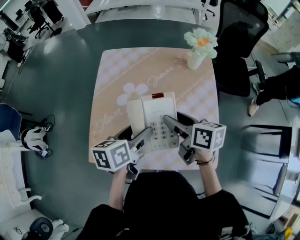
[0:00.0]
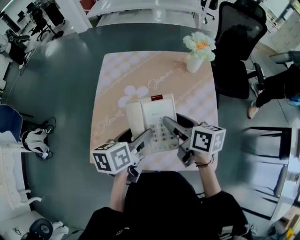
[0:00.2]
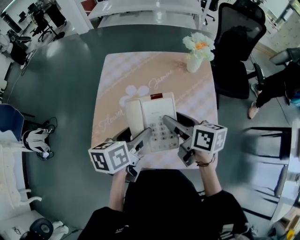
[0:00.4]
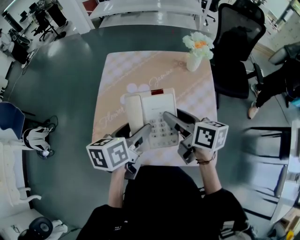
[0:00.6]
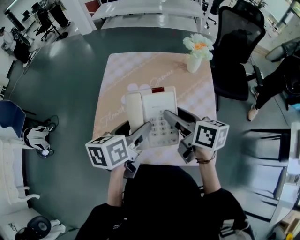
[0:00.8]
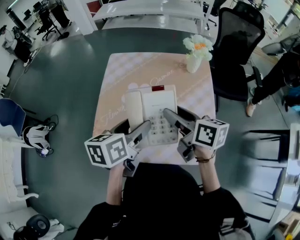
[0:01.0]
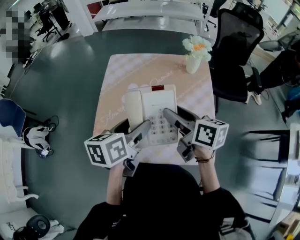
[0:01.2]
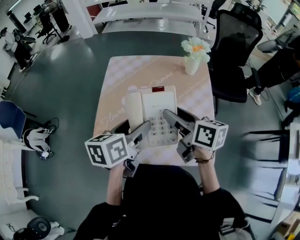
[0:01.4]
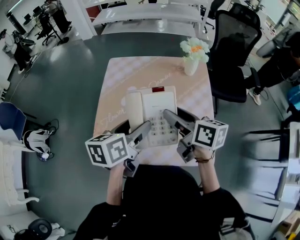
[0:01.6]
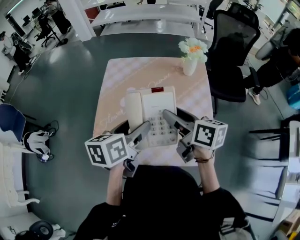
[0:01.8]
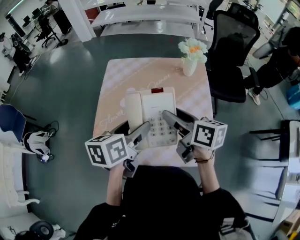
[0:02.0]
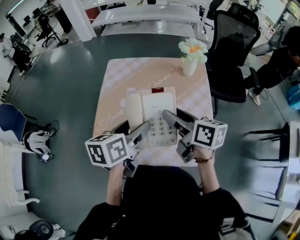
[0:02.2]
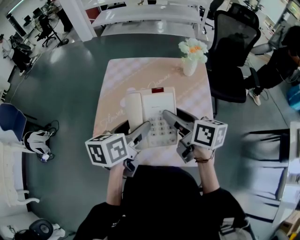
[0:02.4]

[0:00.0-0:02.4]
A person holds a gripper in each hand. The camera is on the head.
0:00.0 to 0:01.2: Both grippers travel together upward, some 10 cm.
0:01.2 to 0:02.4: Both grippers stay put.

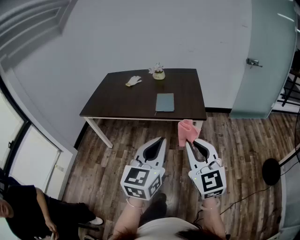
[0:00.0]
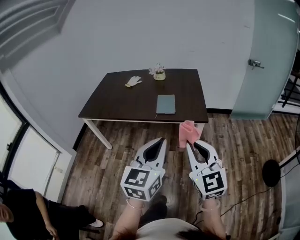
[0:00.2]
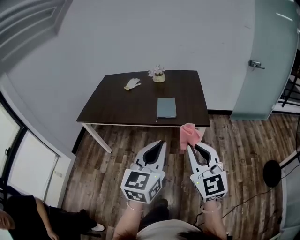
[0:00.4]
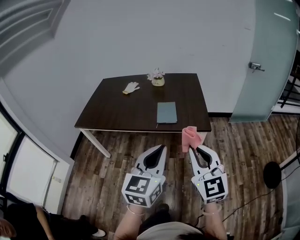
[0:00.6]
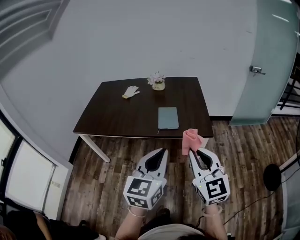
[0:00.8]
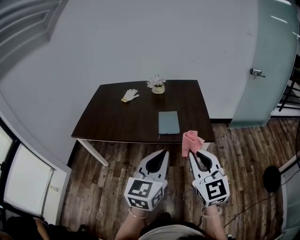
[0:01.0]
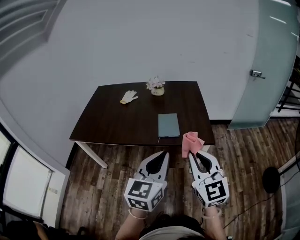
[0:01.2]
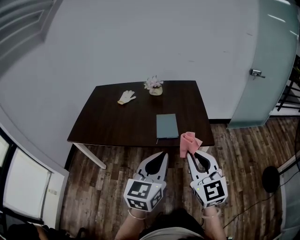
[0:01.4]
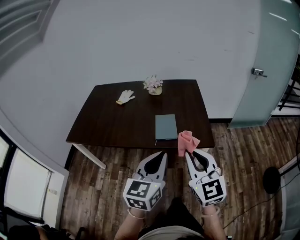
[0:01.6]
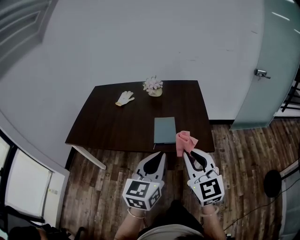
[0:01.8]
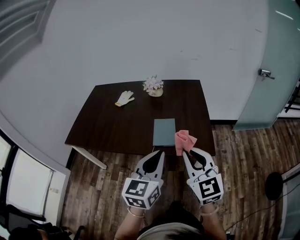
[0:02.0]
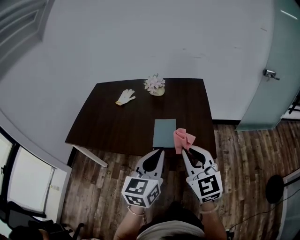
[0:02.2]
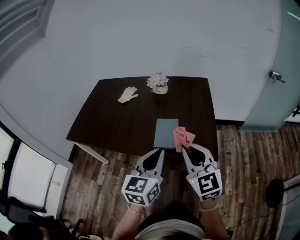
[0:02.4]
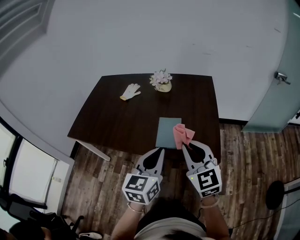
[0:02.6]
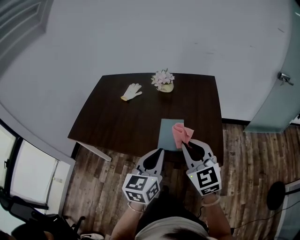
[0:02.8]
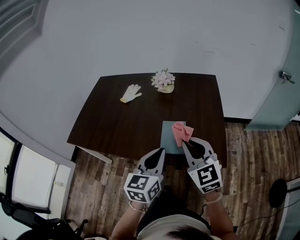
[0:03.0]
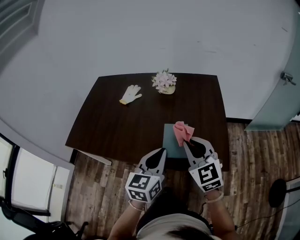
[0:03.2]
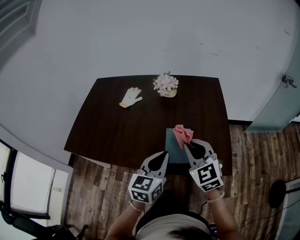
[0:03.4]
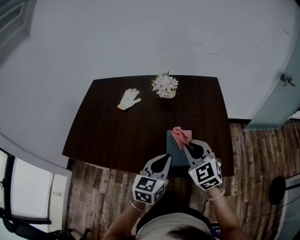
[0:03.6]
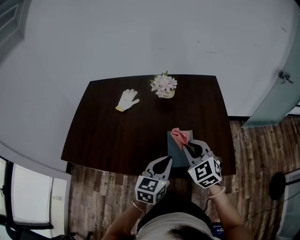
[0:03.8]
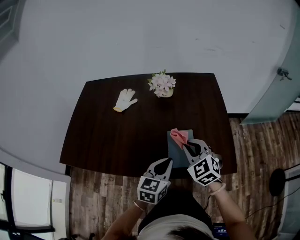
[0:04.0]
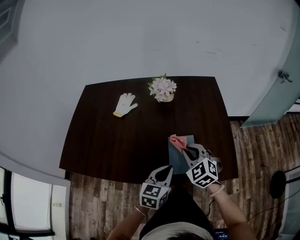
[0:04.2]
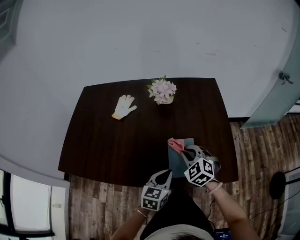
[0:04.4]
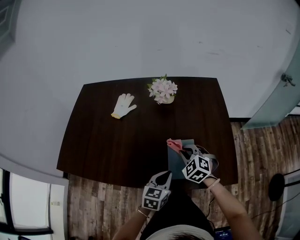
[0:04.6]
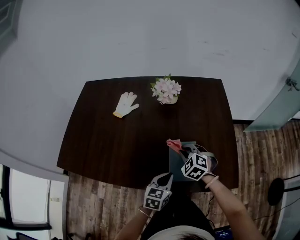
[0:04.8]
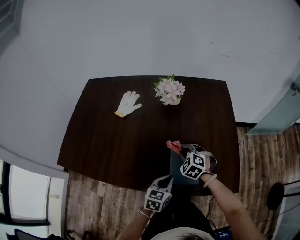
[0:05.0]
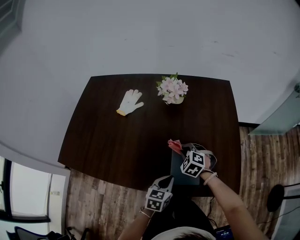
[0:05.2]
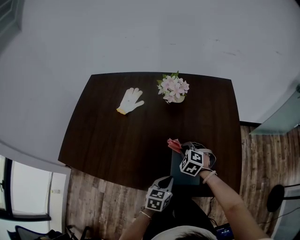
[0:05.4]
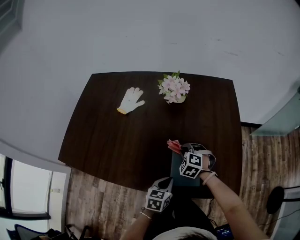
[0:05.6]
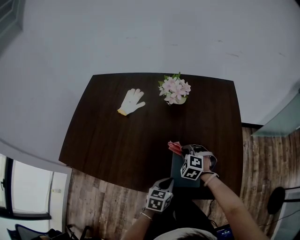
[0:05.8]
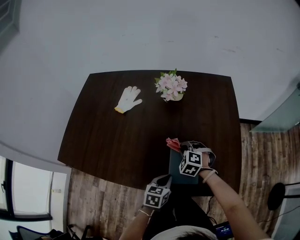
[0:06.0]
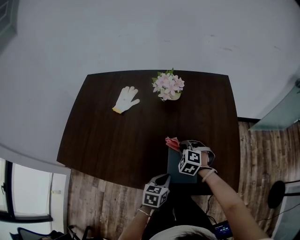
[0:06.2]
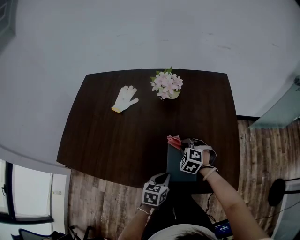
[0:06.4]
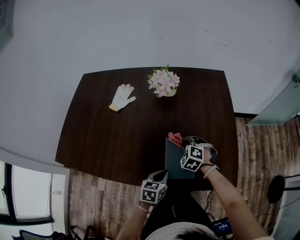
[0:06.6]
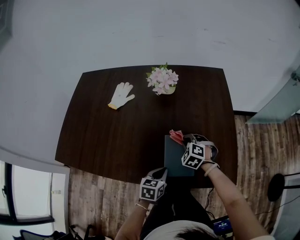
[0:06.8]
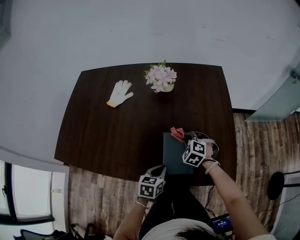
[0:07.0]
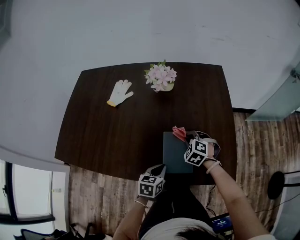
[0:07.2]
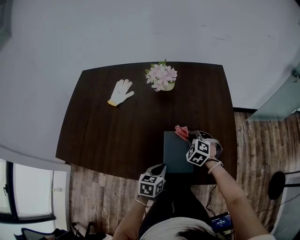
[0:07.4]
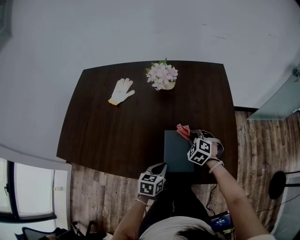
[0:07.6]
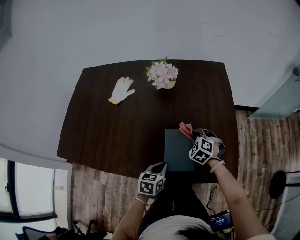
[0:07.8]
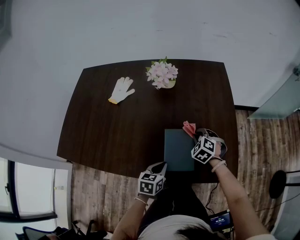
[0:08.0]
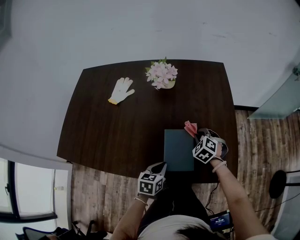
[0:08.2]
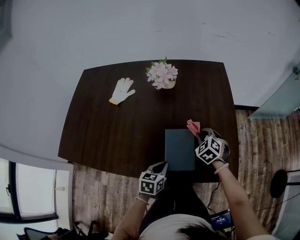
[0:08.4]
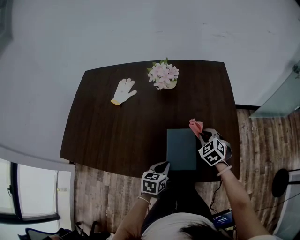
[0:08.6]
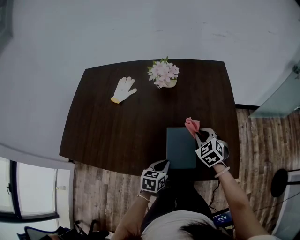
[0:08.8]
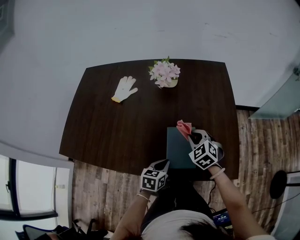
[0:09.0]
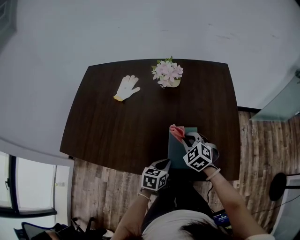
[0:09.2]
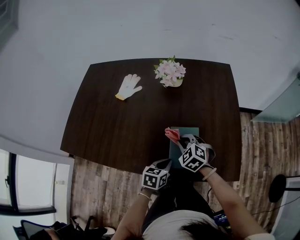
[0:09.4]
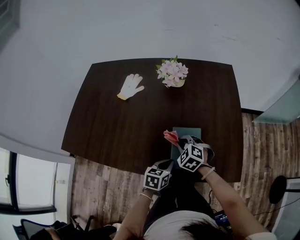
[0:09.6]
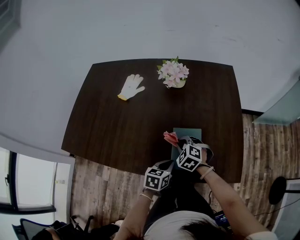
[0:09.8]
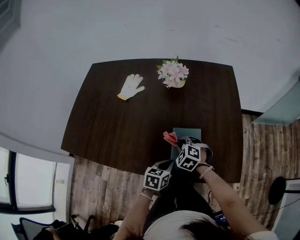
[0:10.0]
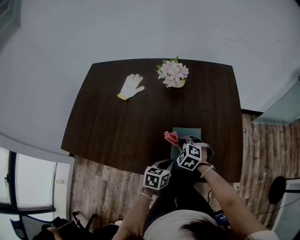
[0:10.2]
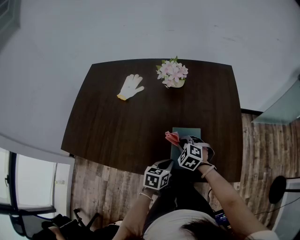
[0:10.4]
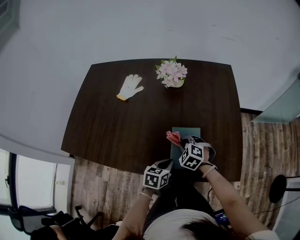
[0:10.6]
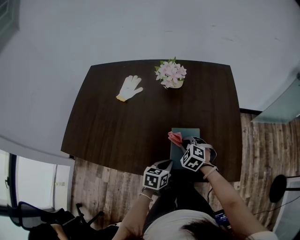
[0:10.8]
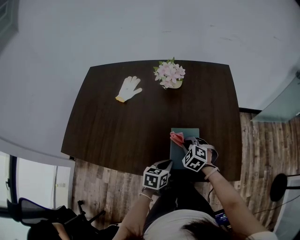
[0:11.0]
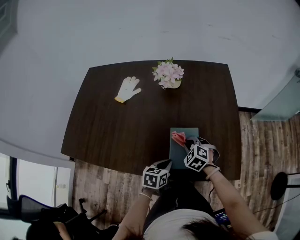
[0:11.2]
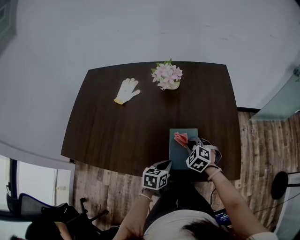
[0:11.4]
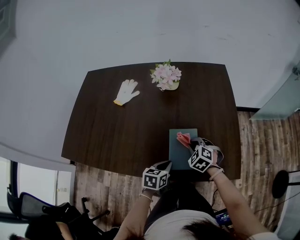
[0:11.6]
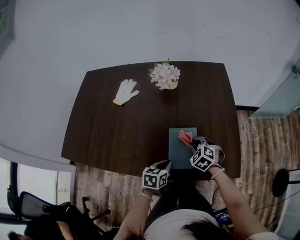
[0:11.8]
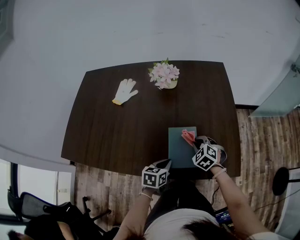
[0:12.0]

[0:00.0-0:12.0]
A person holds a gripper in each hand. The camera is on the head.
0:00.0 to 0:01.6: The grippers both shift forward by about 25 cm.
0:01.6 to 0:03.0: The grippers both shift forward by approximately 25 cm.
0:03.0 to 0:04.4: The right gripper travels forward, downward and to the left by approximately 25 cm, and changes its angle by about 30 degrees. Meanwhile the left gripper heads downward and forward, covering about 20 cm, and turns by some 20 degrees.
0:04.4 to 0:06.0: The left gripper moves downward, roughly 10 cm; the right gripper travels downward and forward by about 15 cm, and turns by about 20 degrees.
0:06.0 to 0:07.6: The right gripper travels to the right by roughly 10 cm.
0:07.6 to 0:09.0: The right gripper shifts about 5 cm upward.
0:09.0 to 0:10.4: The right gripper moves to the left and downward, approximately 10 cm, and swivels about 20 degrees.
0:10.4 to 0:12.0: The right gripper travels to the right by roughly 10 cm.

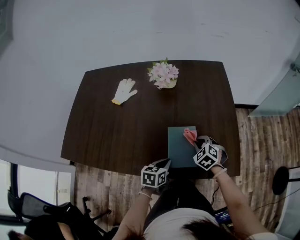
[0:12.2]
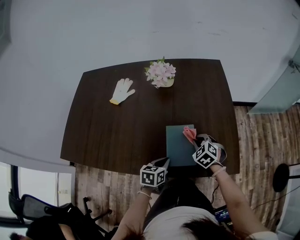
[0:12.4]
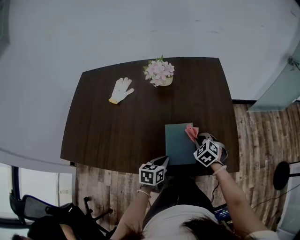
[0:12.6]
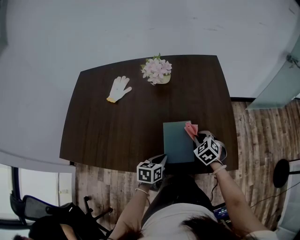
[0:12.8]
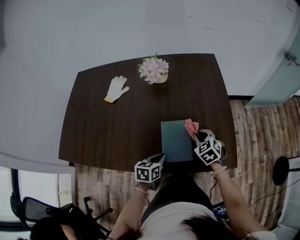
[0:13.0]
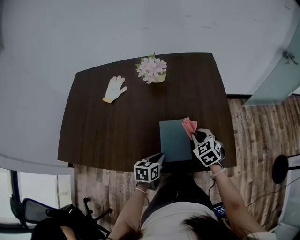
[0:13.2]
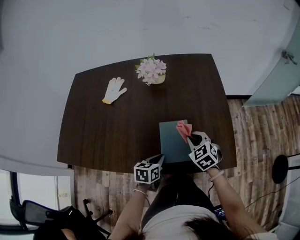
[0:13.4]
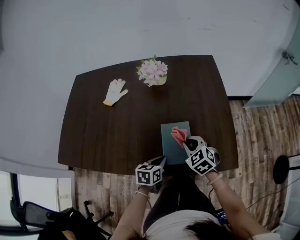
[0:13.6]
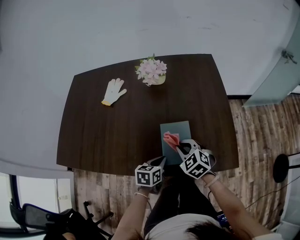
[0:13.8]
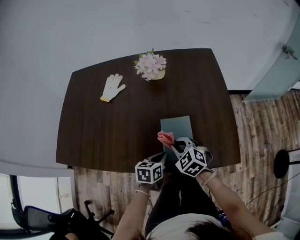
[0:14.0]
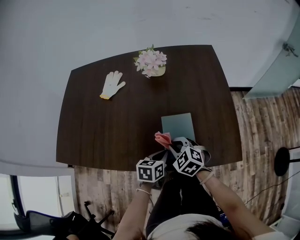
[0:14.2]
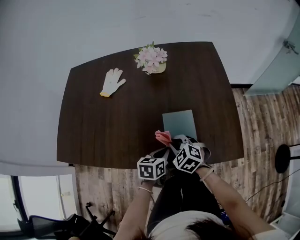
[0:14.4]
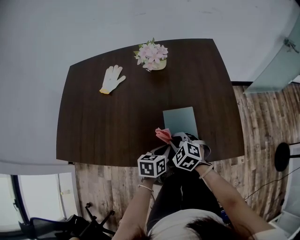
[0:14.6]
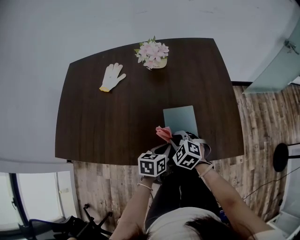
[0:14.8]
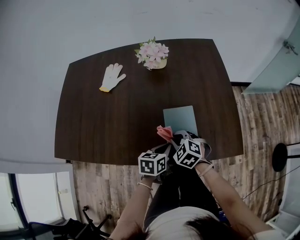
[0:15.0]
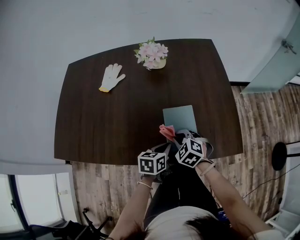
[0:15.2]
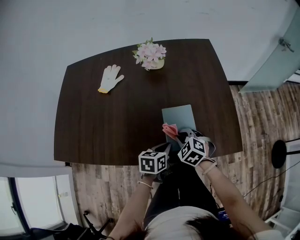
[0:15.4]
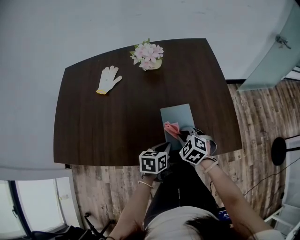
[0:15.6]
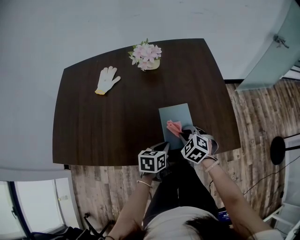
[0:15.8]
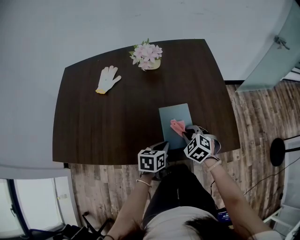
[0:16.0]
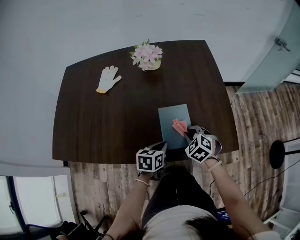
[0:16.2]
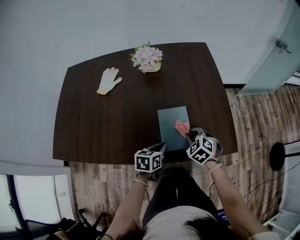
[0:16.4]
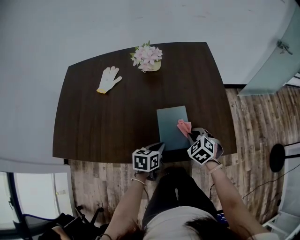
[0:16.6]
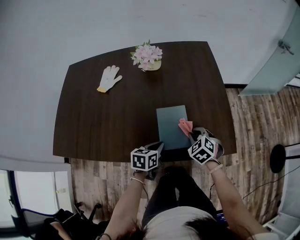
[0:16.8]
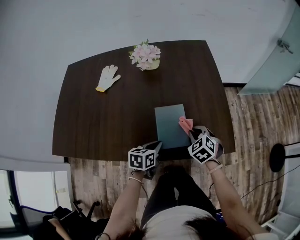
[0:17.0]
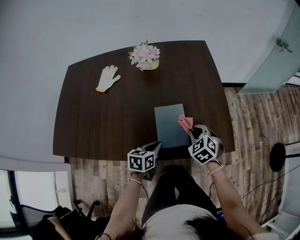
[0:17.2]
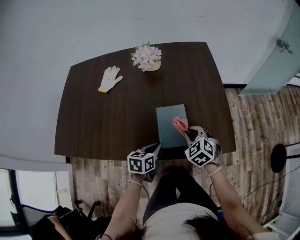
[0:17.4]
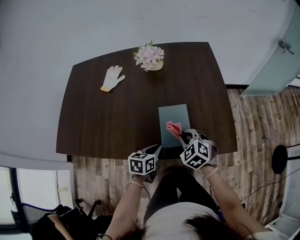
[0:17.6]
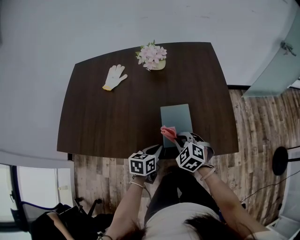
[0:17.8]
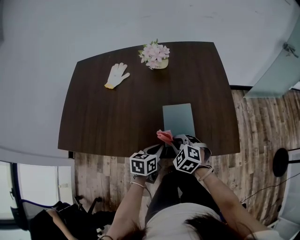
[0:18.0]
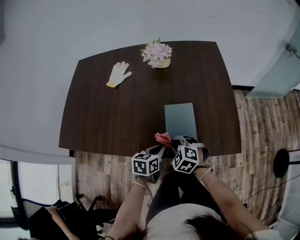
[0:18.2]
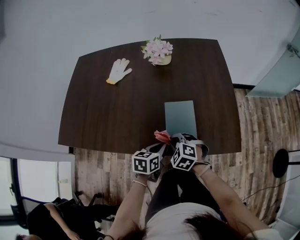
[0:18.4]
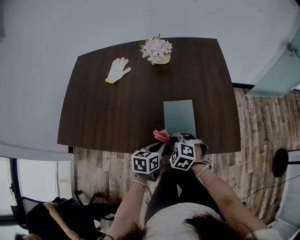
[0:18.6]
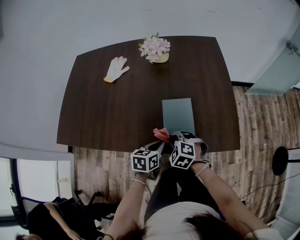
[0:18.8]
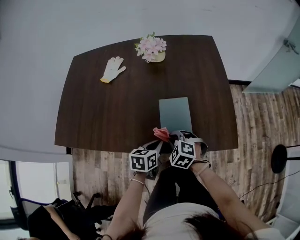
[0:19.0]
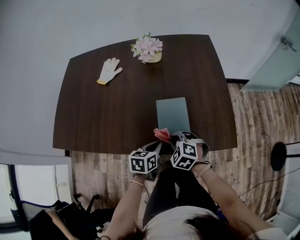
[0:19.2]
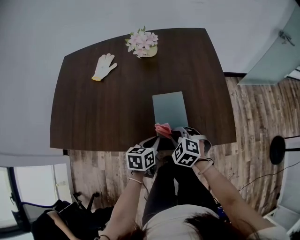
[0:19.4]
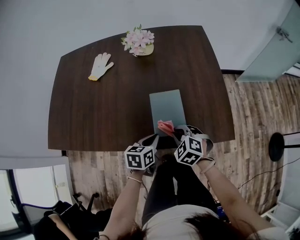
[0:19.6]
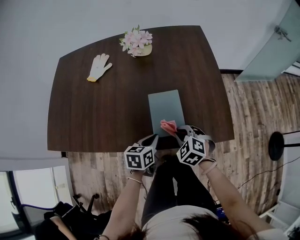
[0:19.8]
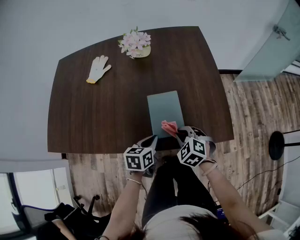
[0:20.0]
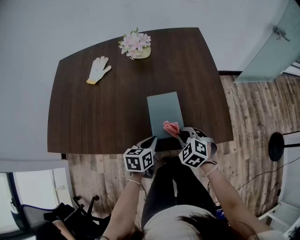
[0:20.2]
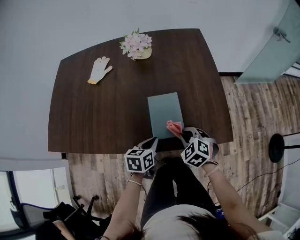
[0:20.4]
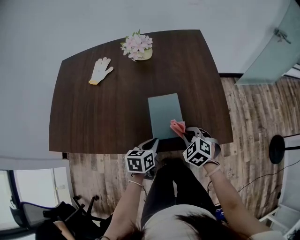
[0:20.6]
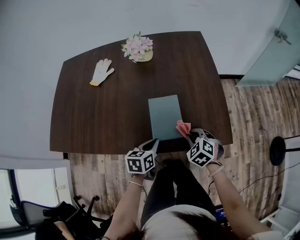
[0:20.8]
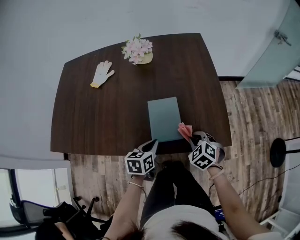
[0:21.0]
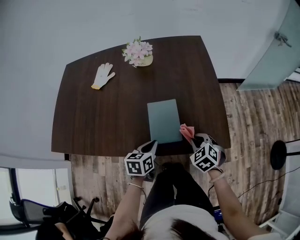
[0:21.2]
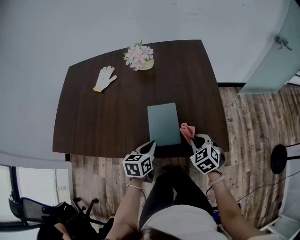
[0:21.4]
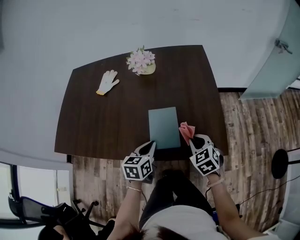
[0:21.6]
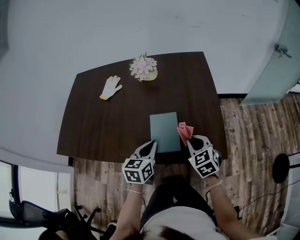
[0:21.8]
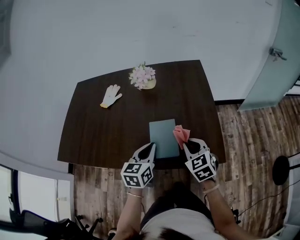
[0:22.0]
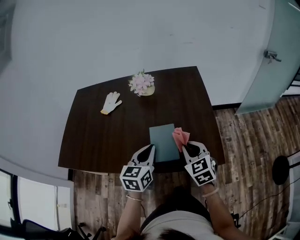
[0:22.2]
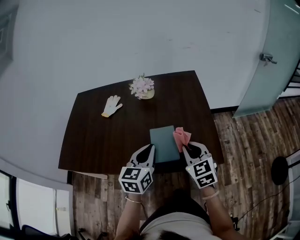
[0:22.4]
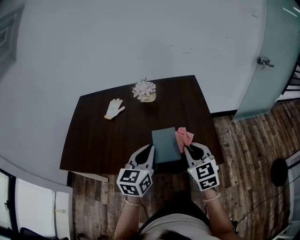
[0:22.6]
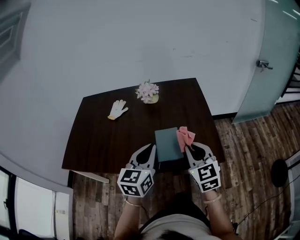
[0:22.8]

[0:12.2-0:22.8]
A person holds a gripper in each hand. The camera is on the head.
0:12.2 to 0:13.8: The right gripper heads to the left, backward and upward, covering some 10 cm.
0:13.8 to 0:15.2: The right gripper travels downward by roughly 5 cm.
0:15.2 to 0:16.8: The right gripper is displaced to the right by roughly 15 cm.
0:16.8 to 0:18.2: The right gripper goes about 15 cm to the left and backward, and rotates some 20 degrees.
0:18.2 to 0:19.8: The right gripper heads to the right, covering about 10 cm.
0:19.8 to 0:21.2: The right gripper heads to the right, covering roughly 10 cm.
0:21.2 to 0:22.8: The two grippers go about 25 cm upward. The right gripper angles its fingers upward, by about 40 degrees. Meanwhile the left gripper turns by about 40 degrees.
